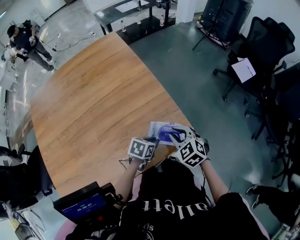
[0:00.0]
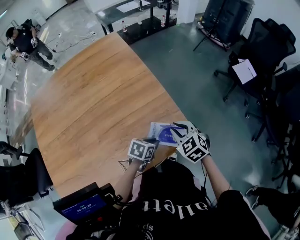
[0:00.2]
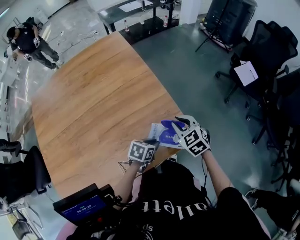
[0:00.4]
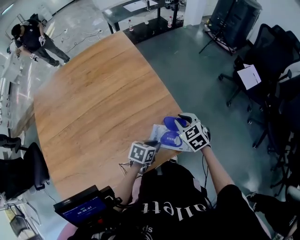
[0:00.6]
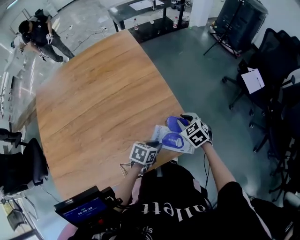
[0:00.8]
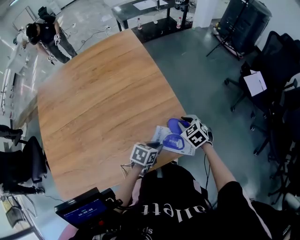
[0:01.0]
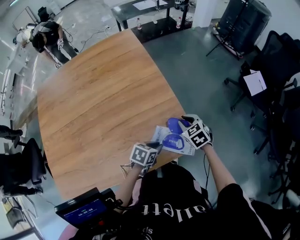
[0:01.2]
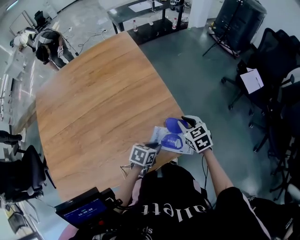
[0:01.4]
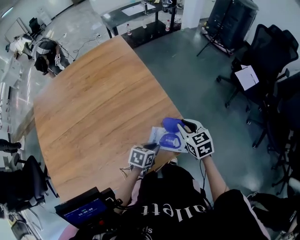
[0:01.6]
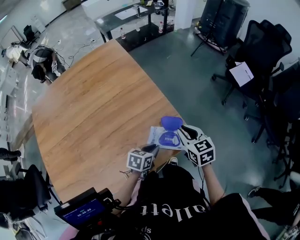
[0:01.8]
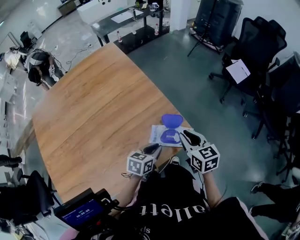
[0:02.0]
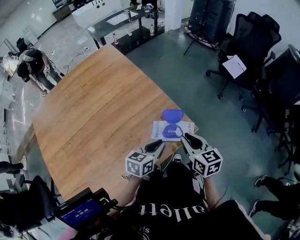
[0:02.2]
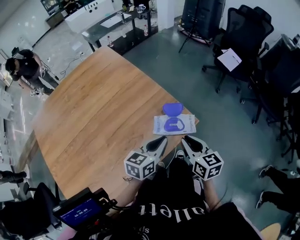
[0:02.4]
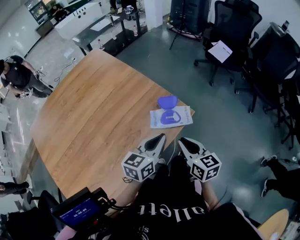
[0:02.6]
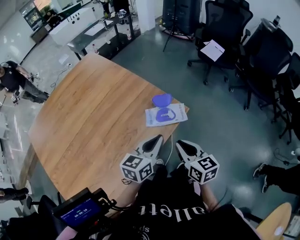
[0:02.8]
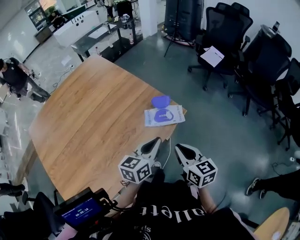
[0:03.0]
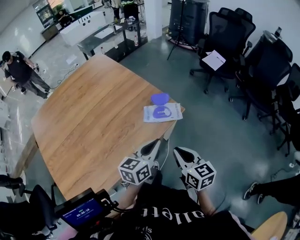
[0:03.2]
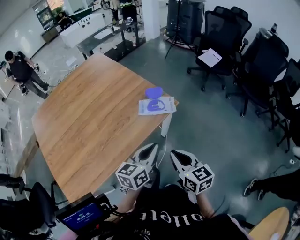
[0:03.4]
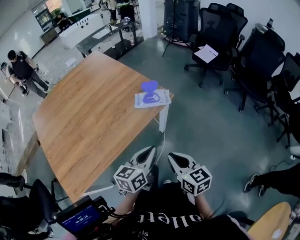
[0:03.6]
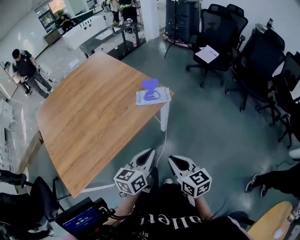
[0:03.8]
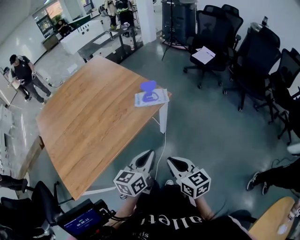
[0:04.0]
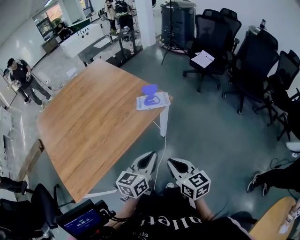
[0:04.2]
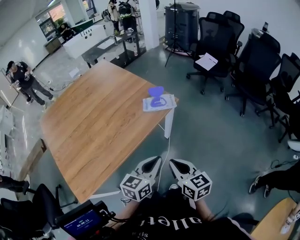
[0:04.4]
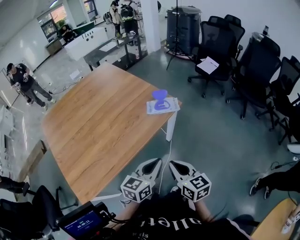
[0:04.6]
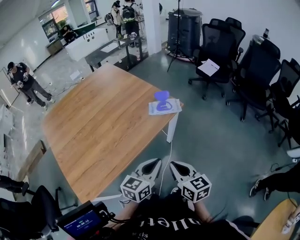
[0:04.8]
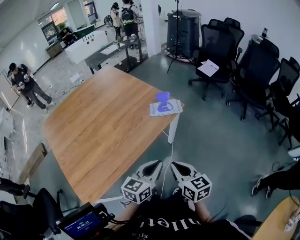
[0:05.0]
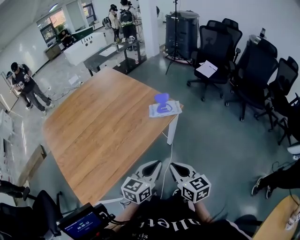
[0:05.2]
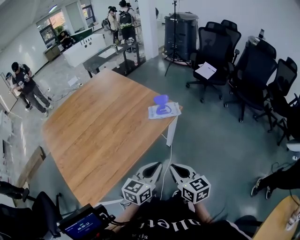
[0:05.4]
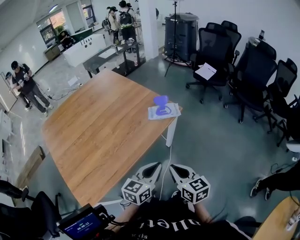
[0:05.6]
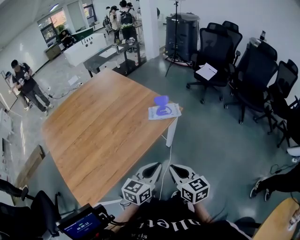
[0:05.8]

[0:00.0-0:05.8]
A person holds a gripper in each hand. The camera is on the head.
0.0 to 1.4 s: The right gripper goes about 10 cm forward.
1.4 to 2.8 s: The left gripper moves upward and backward, approximately 20 cm, and points its fingers approximately 40 degrees further upward; the right gripper goes about 30 cm backward, and swivels some 40 degrees.
2.8 to 4.4 s: The two grippers go some 25 cm backward.
4.4 to 5.8 s: Both grippers travel together to the left, approximately 5 cm.

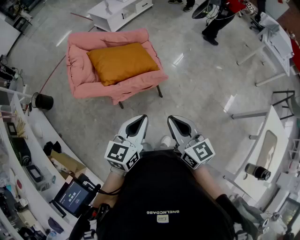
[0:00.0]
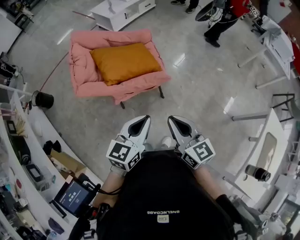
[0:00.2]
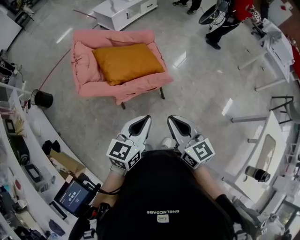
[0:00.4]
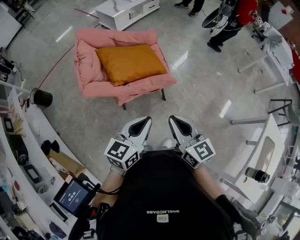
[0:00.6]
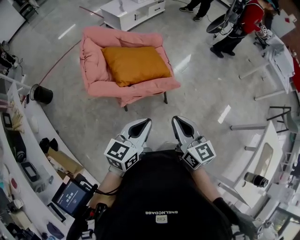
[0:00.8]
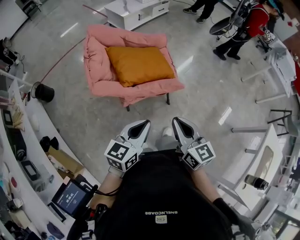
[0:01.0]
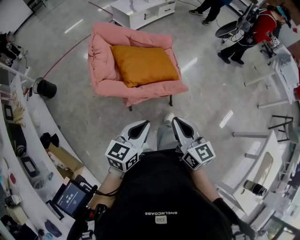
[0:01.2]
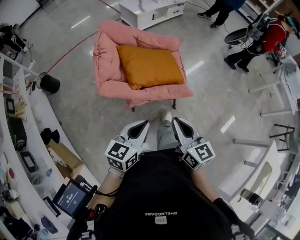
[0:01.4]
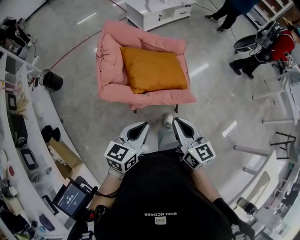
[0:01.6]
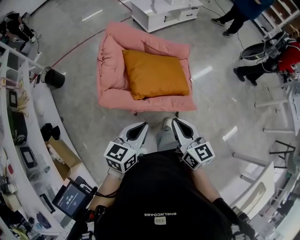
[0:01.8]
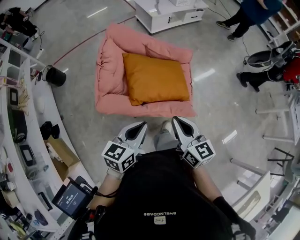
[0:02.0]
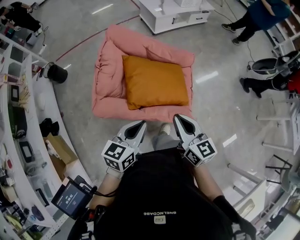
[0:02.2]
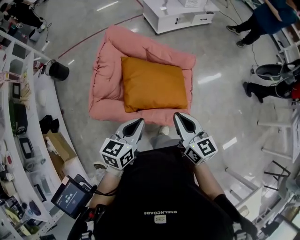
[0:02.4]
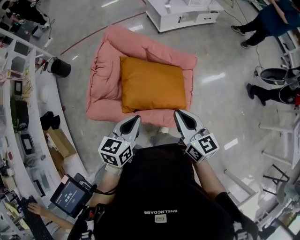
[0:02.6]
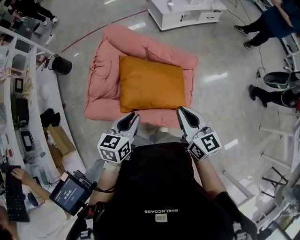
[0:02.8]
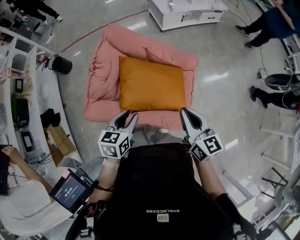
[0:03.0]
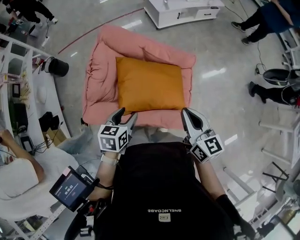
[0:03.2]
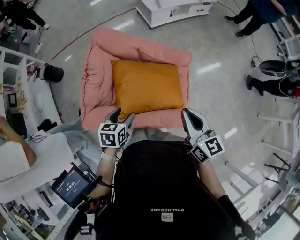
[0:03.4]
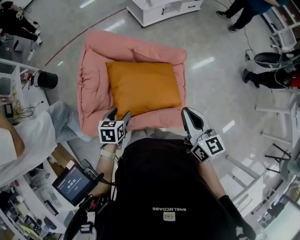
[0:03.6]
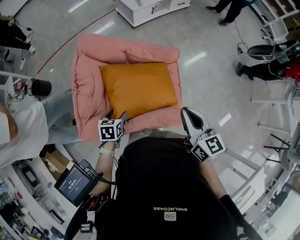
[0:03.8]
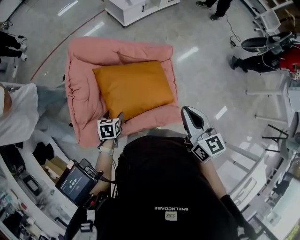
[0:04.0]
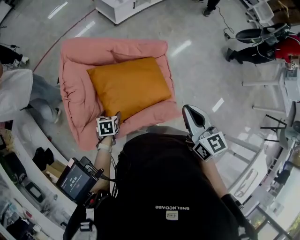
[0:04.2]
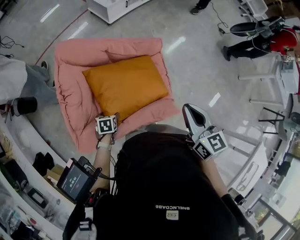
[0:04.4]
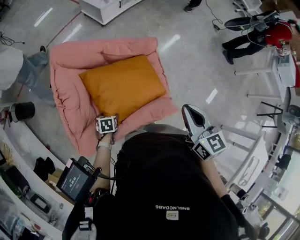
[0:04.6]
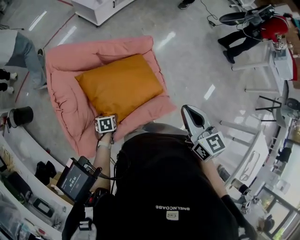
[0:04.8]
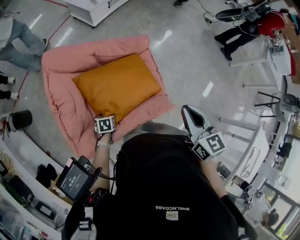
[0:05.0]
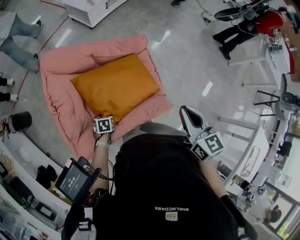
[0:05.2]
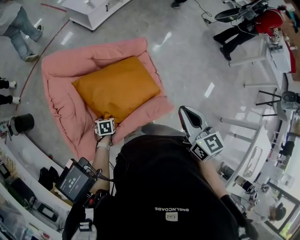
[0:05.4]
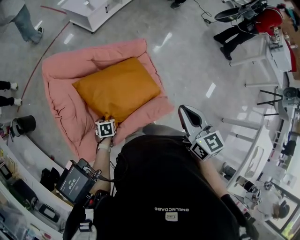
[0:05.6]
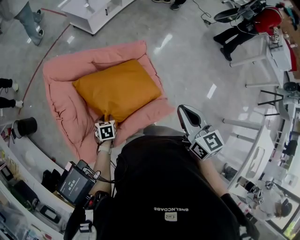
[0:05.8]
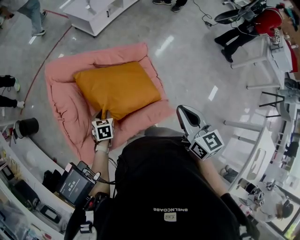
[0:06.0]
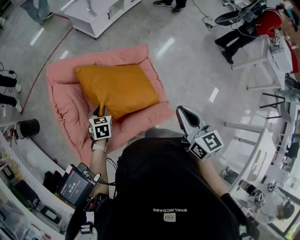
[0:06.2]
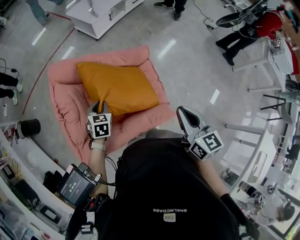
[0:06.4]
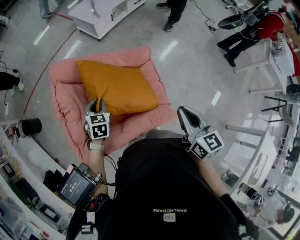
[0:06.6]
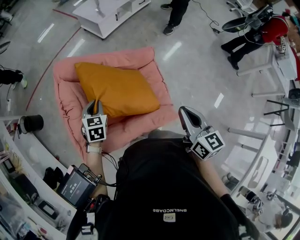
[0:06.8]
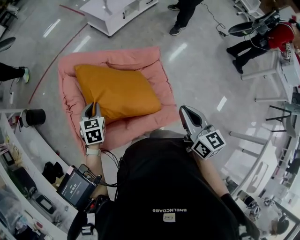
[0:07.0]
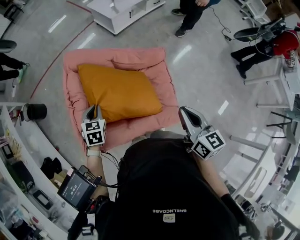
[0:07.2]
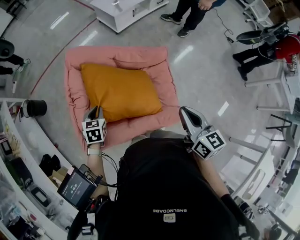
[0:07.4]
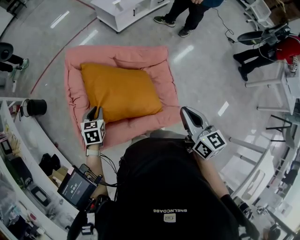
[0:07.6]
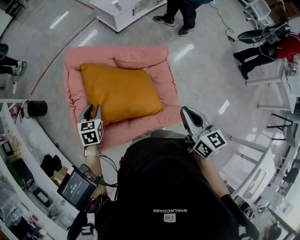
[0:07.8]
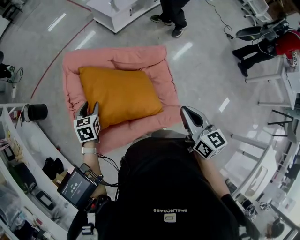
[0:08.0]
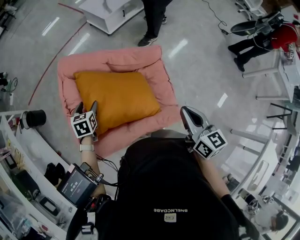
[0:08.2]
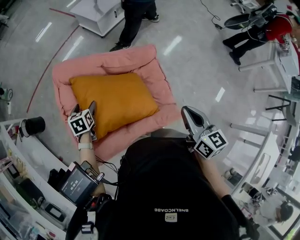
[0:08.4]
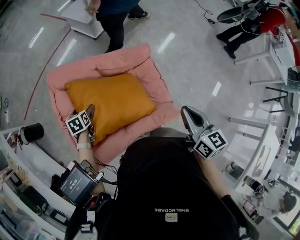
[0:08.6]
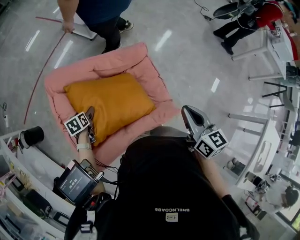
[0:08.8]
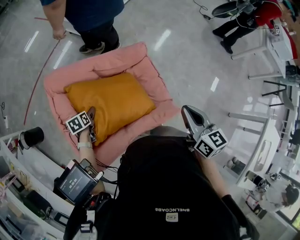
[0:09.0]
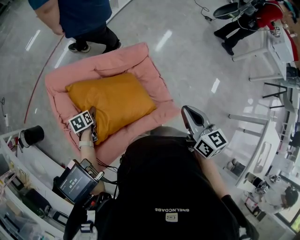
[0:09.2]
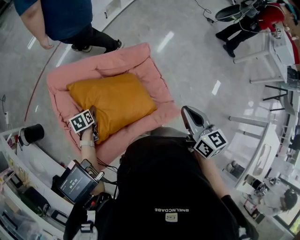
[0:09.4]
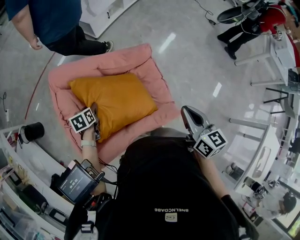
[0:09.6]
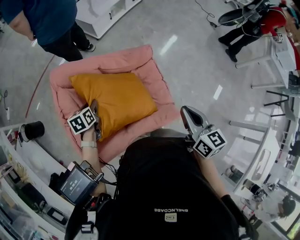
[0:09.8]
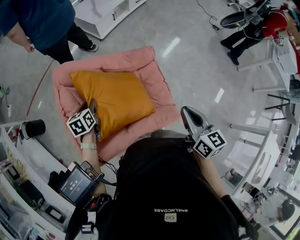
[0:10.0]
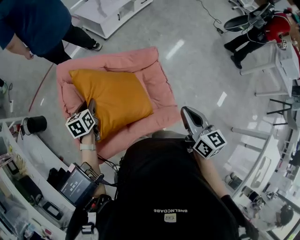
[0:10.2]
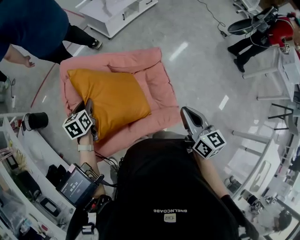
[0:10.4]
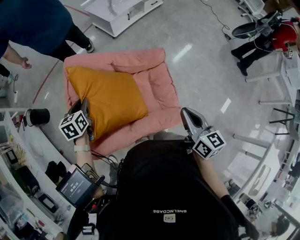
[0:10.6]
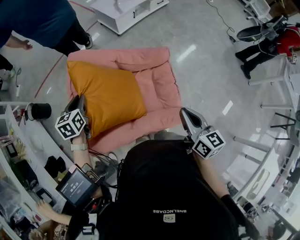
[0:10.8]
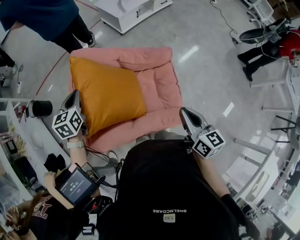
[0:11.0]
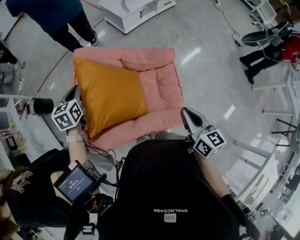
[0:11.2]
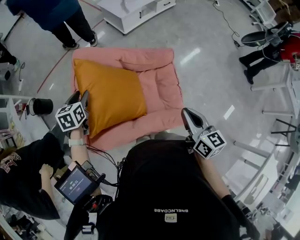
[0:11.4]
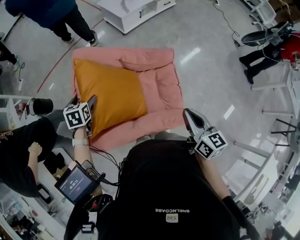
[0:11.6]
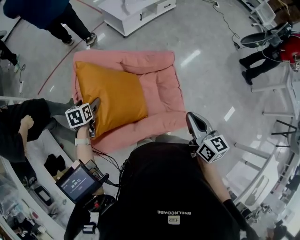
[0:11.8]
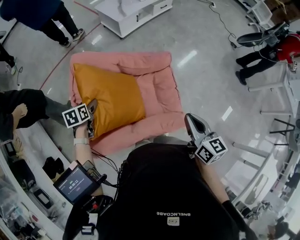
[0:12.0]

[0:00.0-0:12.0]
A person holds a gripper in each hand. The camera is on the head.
0.0 to 1.6 s: Both grippers travel together to the left and forward, approximately 20 cm.
1.6 to 3.0 s: The right gripper travels forward and to the right by roughly 30 cm. The left gripper shifts approximately 25 cm forward, and swivels some 30 degrees.
3.0 to 4.4 s: The right gripper rotates approximately 30 degrees; the left gripper shifts approximately 25 cm downward, tips its fingers downward by approximately 30 degrees, and opens.
4.4 to 6.0 s: The left gripper travels forward and upward by about 10 cm, rotates some 20 degrees, and closes.
6.0 to 7.6 s: The left gripper shifts some 10 cm to the left and upward.
7.6 to 9.0 s: The left gripper travels downward and forward by about 15 cm, swivels about 20 degrees, and opens.
9.0 to 10.4 s: The left gripper travels upward by about 15 cm, changes its angle by some 20 degrees, and closes up.
10.4 to 12.0 s: The left gripper ends up some 5 cm from where it was, and opens up.

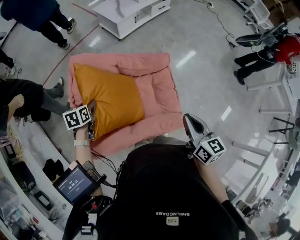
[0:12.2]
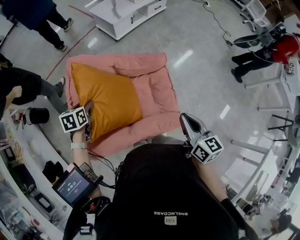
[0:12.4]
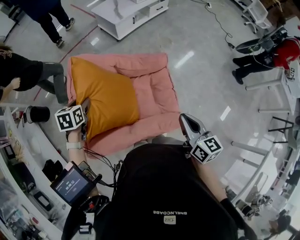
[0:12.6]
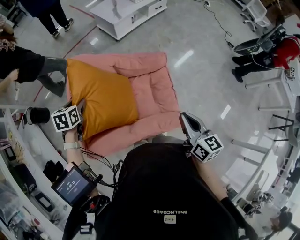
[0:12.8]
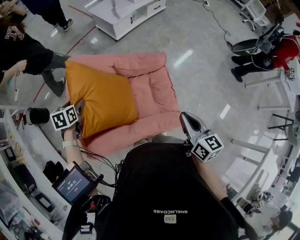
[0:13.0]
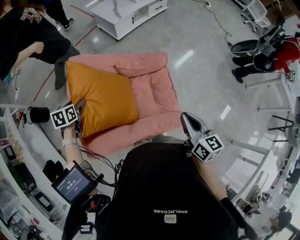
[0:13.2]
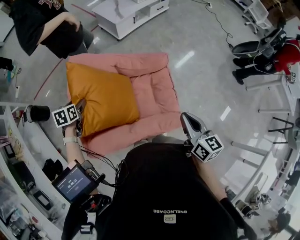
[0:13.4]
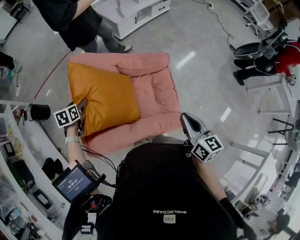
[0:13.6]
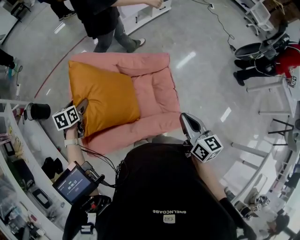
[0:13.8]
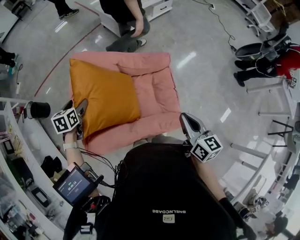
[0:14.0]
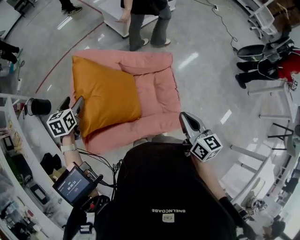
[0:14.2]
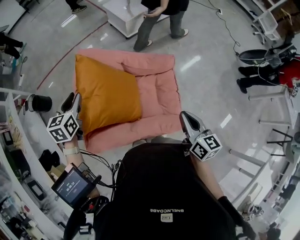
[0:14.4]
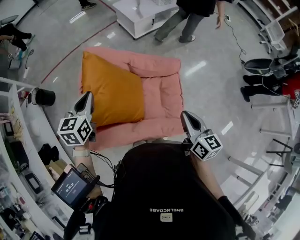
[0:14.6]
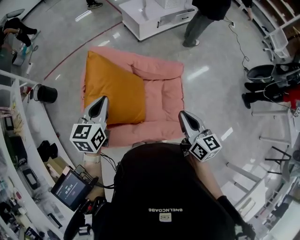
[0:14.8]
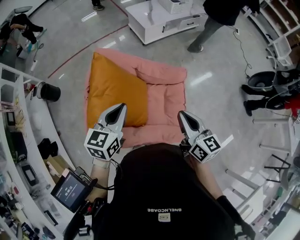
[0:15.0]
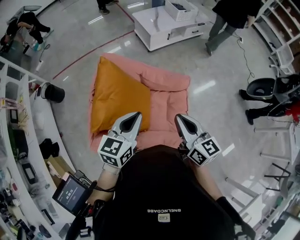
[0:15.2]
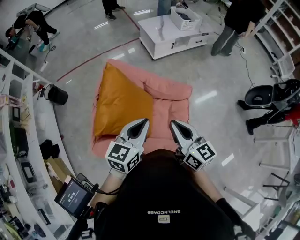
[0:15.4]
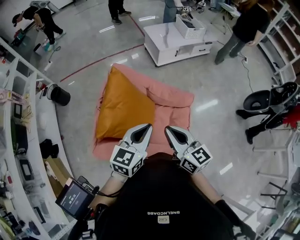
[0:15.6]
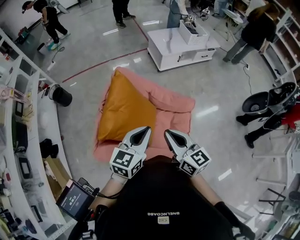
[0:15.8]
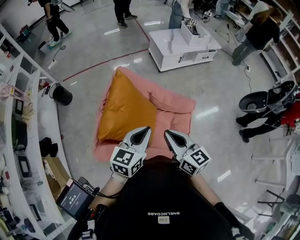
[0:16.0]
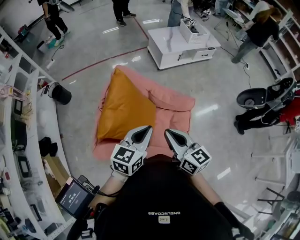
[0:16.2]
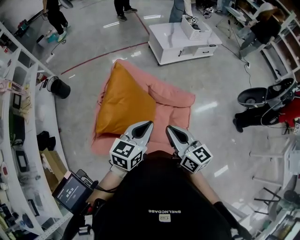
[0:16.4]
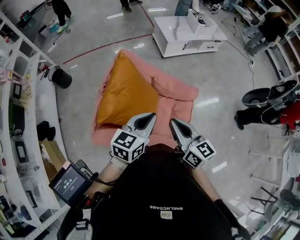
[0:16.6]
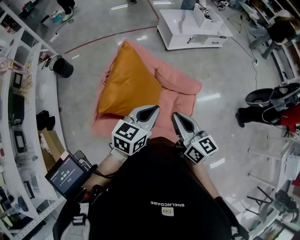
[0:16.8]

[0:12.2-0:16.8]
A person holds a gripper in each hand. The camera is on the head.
12.2 to 13.8 s: The left gripper moves to the left, roughly 5 cm, and opens.
13.8 to 15.2 s: The left gripper goes approximately 30 cm to the right, upward and backward, points its fingers some 30 degrees further upward, and closes; the right gripper travels upward, forward and to the left by roughly 10 cm, and swivels roughly 20 degrees.
15.2 to 16.8 s: The right gripper goes roughly 5 cm to the left.

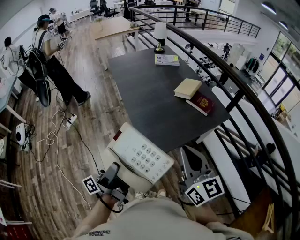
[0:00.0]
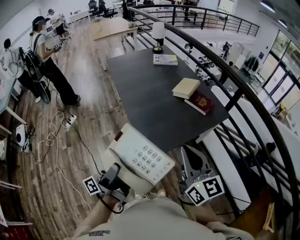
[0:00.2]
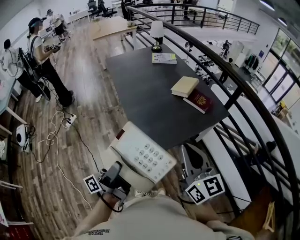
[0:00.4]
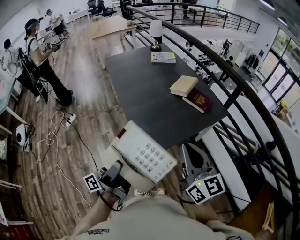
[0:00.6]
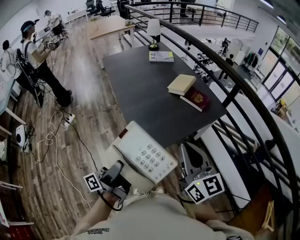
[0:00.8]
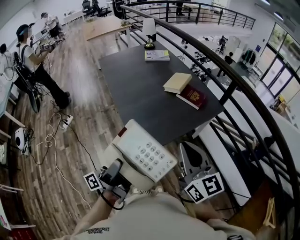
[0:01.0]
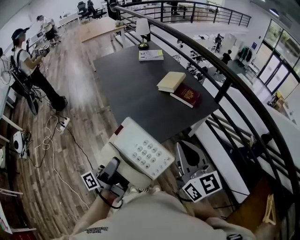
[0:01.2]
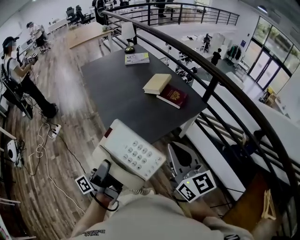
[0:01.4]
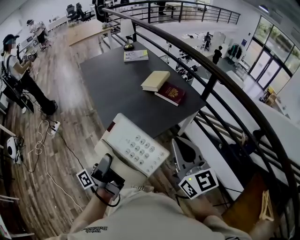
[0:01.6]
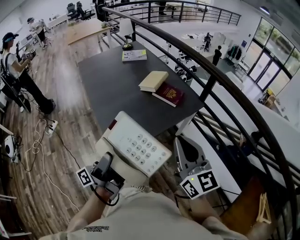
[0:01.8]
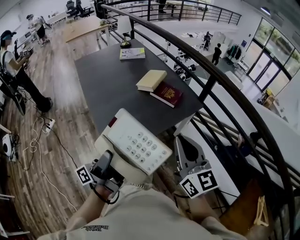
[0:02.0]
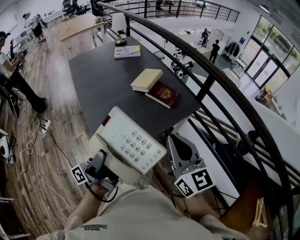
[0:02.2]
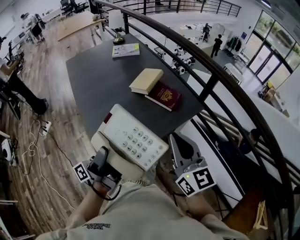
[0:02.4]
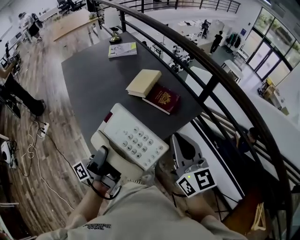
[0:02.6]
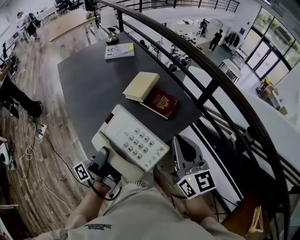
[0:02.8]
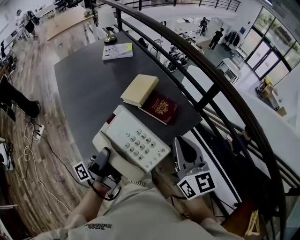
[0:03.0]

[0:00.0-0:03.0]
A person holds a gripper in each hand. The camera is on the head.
0.0 to 1.6 s: The right gripper ends up some 15 cm from where it was.
1.6 to 3.0 s: The right gripper moves about 30 cm.
